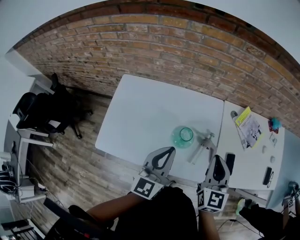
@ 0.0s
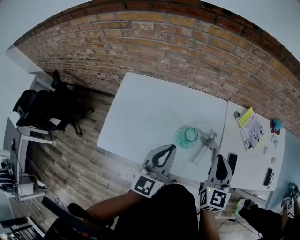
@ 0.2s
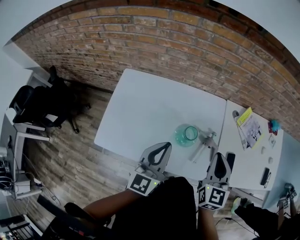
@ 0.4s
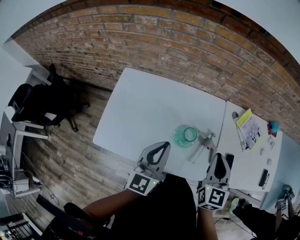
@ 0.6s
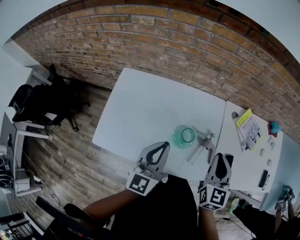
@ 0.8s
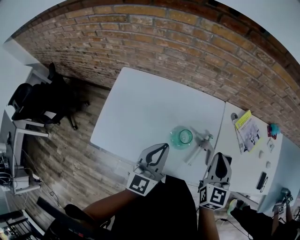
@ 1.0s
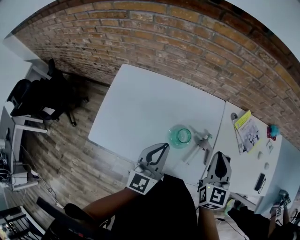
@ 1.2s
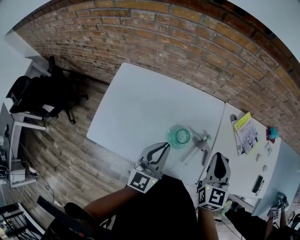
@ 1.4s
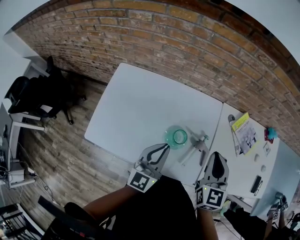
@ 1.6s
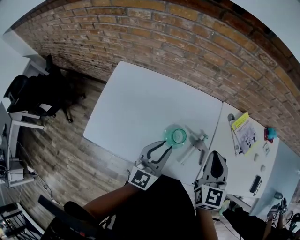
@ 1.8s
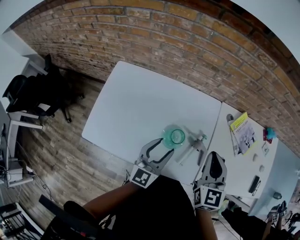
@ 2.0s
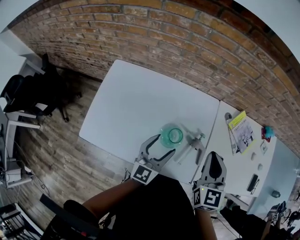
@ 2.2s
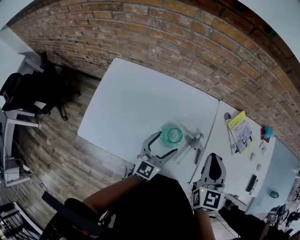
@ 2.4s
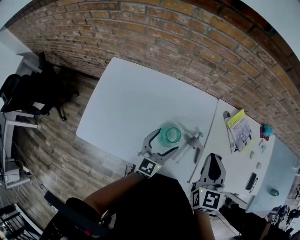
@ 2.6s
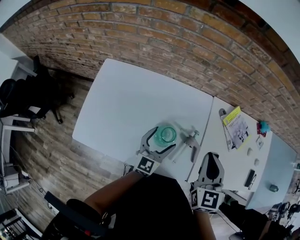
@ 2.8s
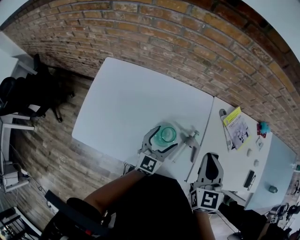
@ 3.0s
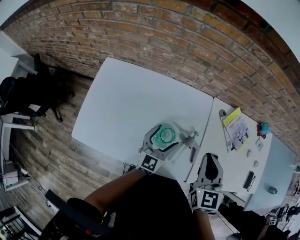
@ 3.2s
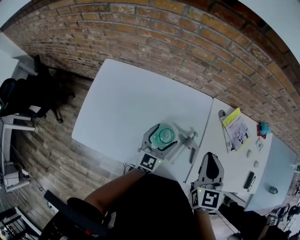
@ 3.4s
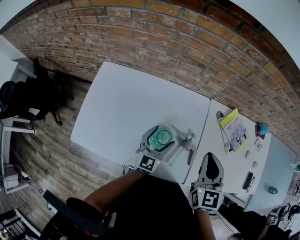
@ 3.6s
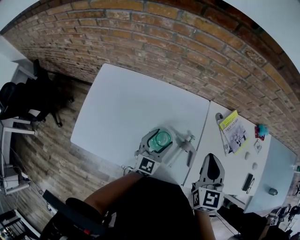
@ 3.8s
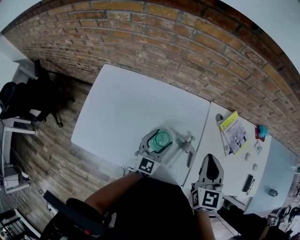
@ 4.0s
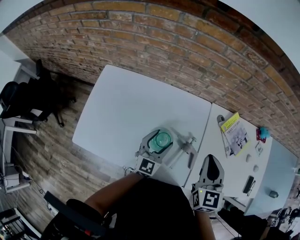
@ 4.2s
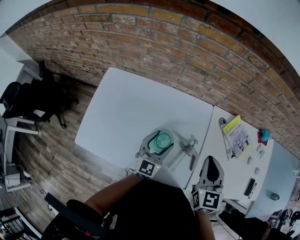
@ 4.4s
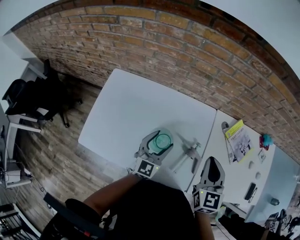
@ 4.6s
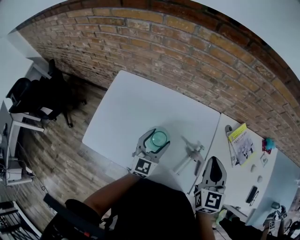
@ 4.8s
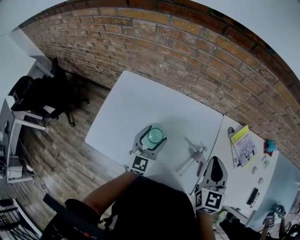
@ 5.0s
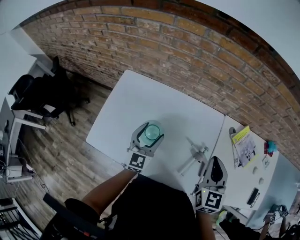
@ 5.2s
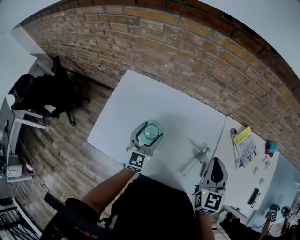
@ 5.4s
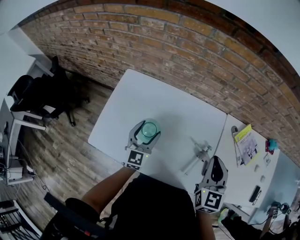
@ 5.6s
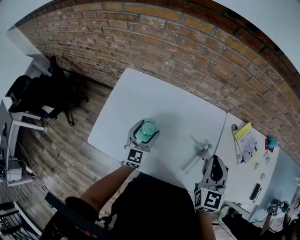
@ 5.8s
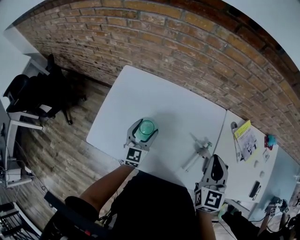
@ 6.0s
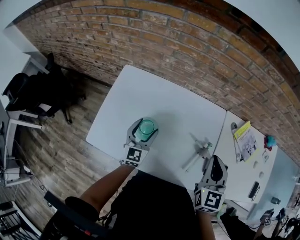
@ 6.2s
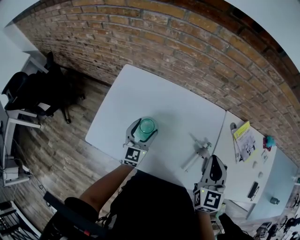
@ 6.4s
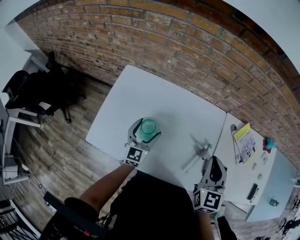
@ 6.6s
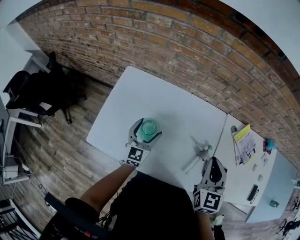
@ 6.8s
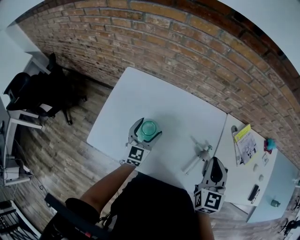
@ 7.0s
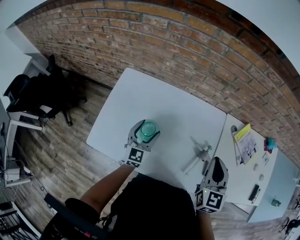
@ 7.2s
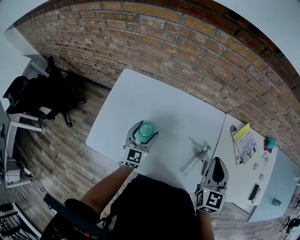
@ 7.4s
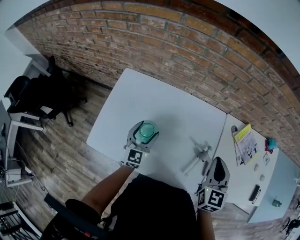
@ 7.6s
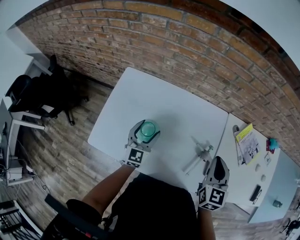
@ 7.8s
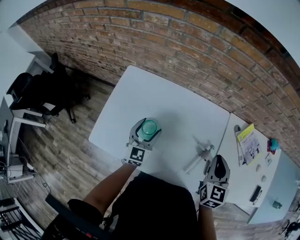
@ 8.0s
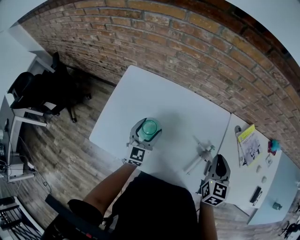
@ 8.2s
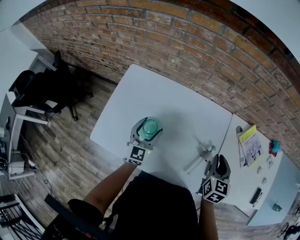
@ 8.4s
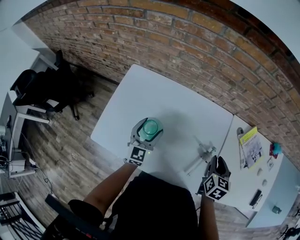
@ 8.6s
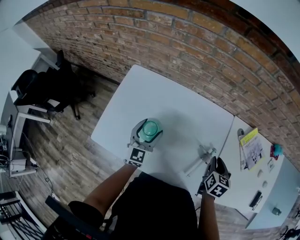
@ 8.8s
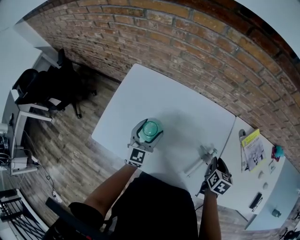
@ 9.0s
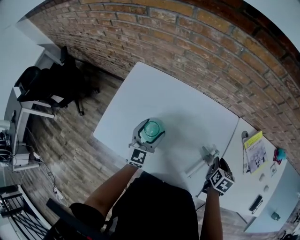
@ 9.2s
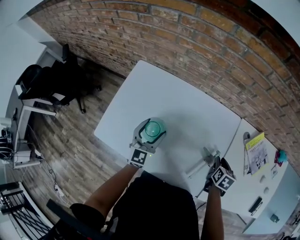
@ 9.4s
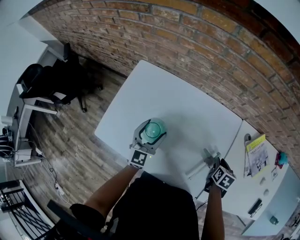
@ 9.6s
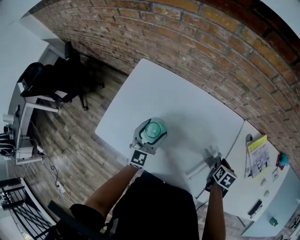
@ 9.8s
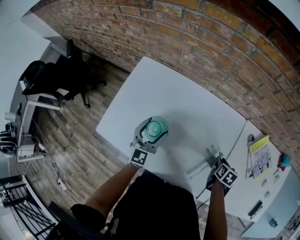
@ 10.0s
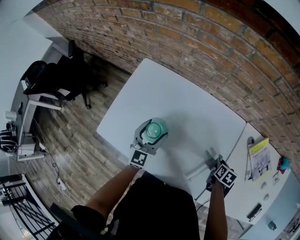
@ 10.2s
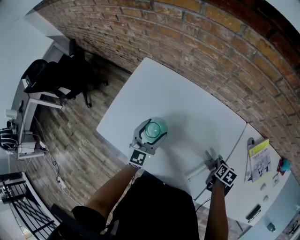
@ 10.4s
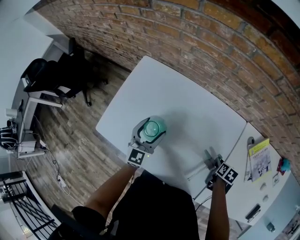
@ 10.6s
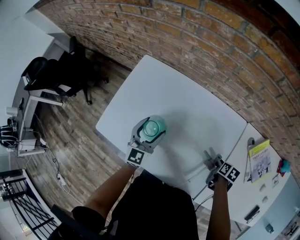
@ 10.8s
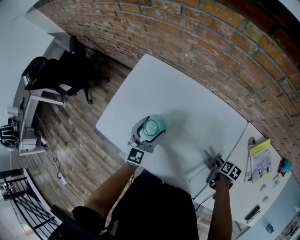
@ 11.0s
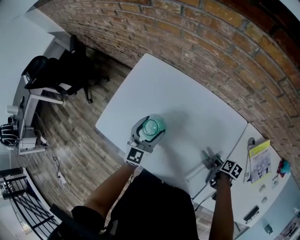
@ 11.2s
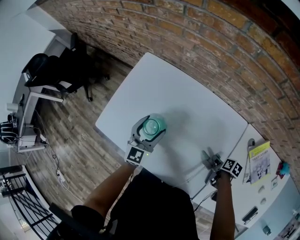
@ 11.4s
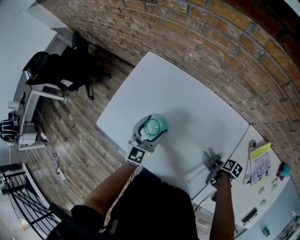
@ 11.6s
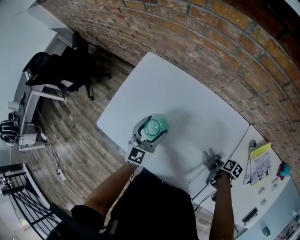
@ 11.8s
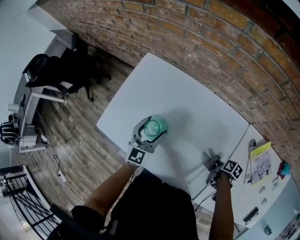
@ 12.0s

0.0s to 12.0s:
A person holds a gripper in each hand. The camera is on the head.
0.0s to 1.6s: The left gripper moves downward, some 5 cm. The right gripper travels forward by roughly 5 cm.
1.6s to 3.0s: The left gripper travels downward, forward and to the right by roughly 15 cm, and opens its fingers.
3.0s to 4.4s: There are only small adjustments of the grippers.
4.4s to 6.0s: The left gripper is displaced to the left by some 20 cm; the right gripper travels to the left by some 10 cm.
6.0s to 7.6s: There are only small adjustments of the grippers.
7.6s to 9.0s: The right gripper is displaced downward by approximately 15 cm, and rotates about 30 degrees.
9.0s to 10.4s: The right gripper moves downward, roughly 10 cm.
10.4s to 12.0s: The right gripper turns by approximately 30 degrees.

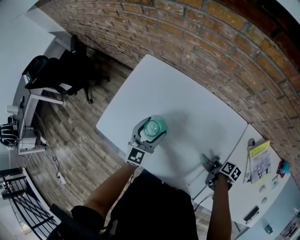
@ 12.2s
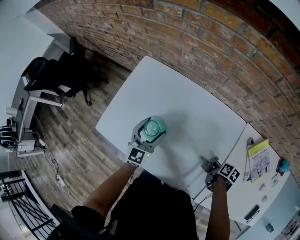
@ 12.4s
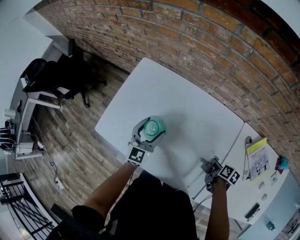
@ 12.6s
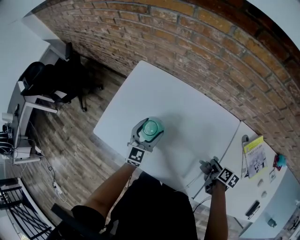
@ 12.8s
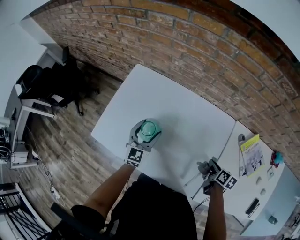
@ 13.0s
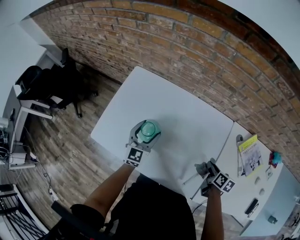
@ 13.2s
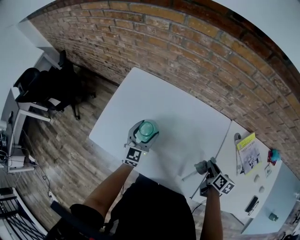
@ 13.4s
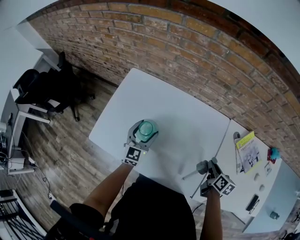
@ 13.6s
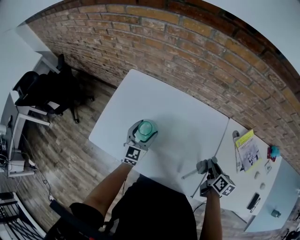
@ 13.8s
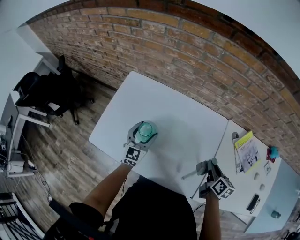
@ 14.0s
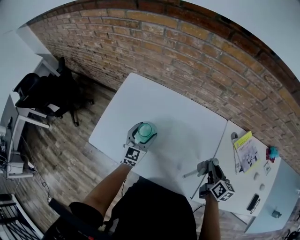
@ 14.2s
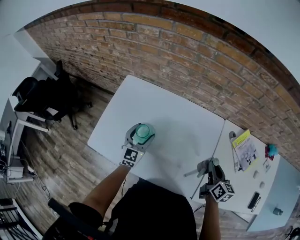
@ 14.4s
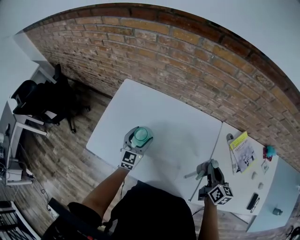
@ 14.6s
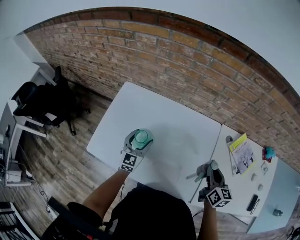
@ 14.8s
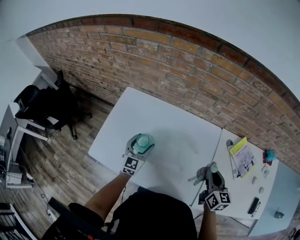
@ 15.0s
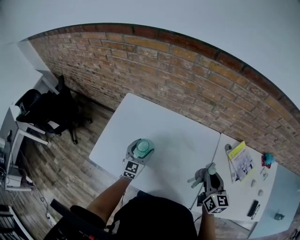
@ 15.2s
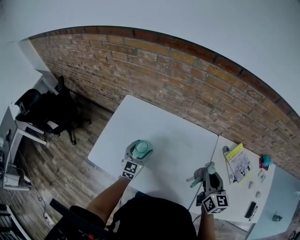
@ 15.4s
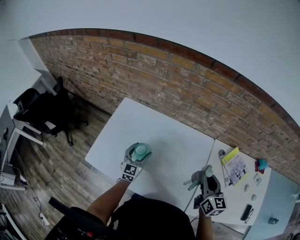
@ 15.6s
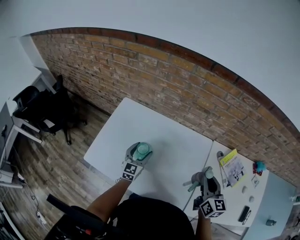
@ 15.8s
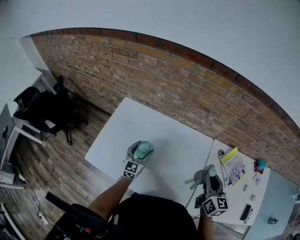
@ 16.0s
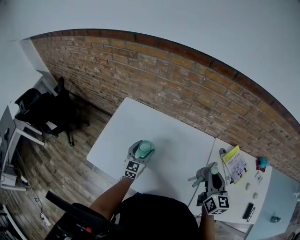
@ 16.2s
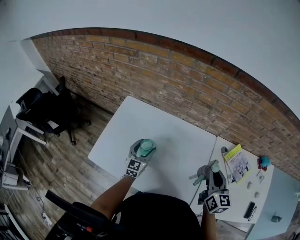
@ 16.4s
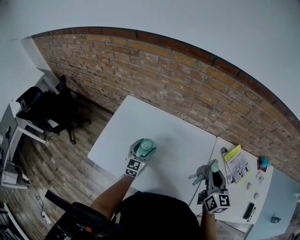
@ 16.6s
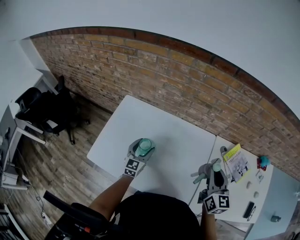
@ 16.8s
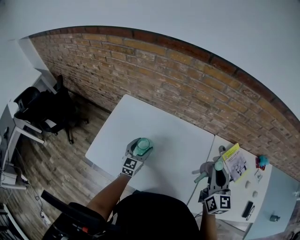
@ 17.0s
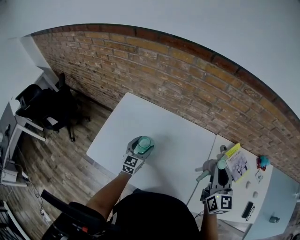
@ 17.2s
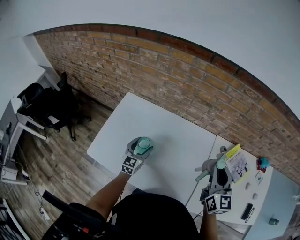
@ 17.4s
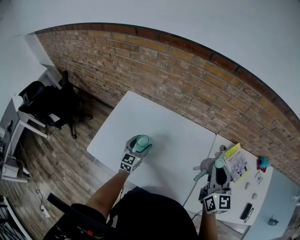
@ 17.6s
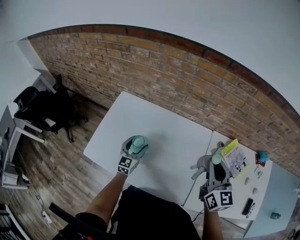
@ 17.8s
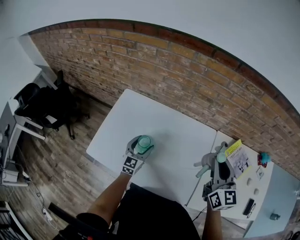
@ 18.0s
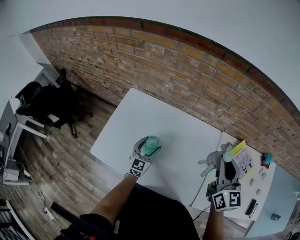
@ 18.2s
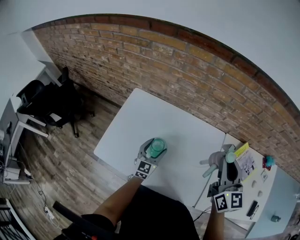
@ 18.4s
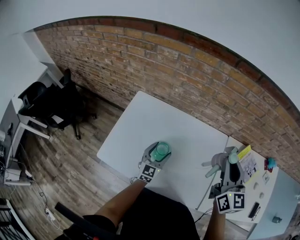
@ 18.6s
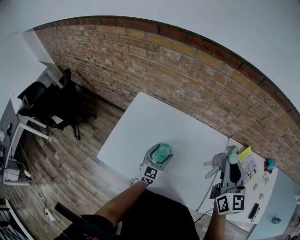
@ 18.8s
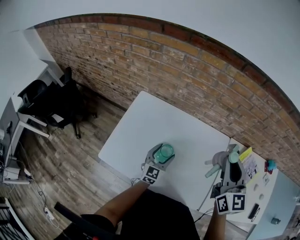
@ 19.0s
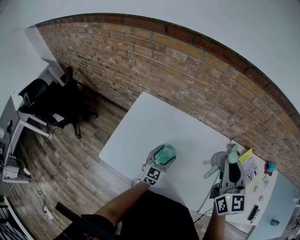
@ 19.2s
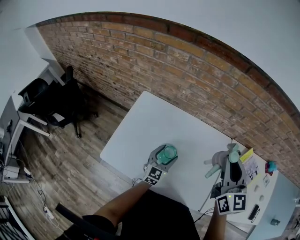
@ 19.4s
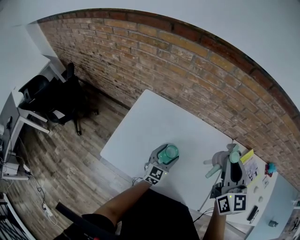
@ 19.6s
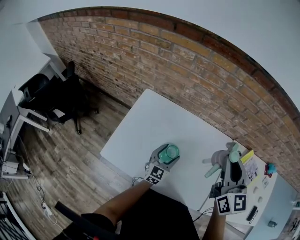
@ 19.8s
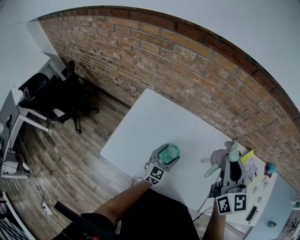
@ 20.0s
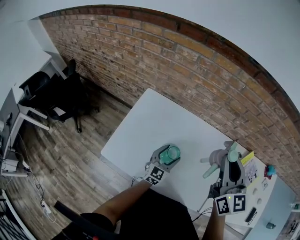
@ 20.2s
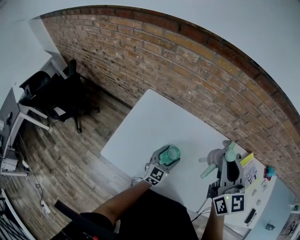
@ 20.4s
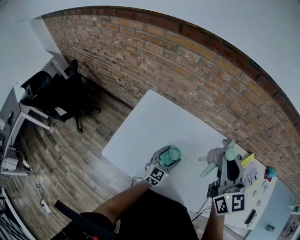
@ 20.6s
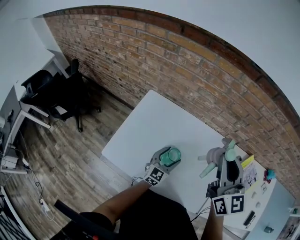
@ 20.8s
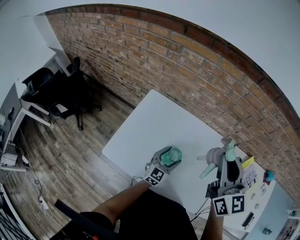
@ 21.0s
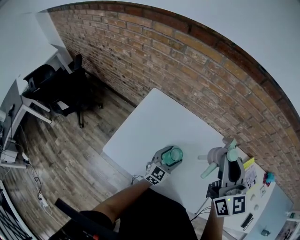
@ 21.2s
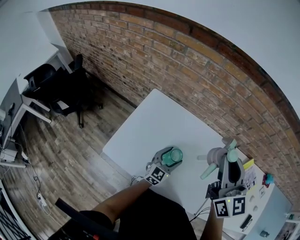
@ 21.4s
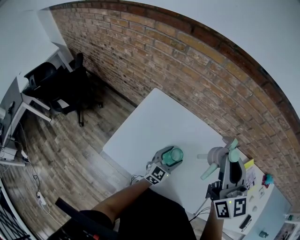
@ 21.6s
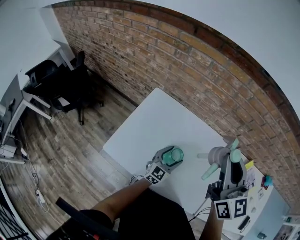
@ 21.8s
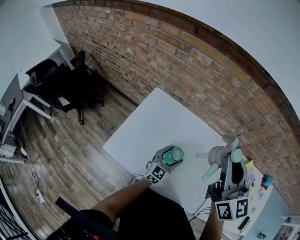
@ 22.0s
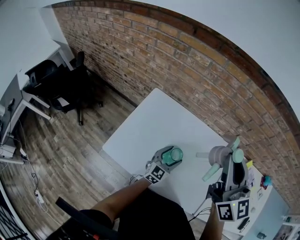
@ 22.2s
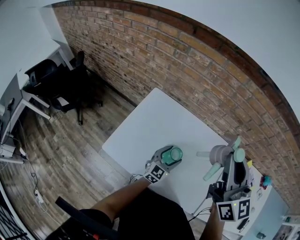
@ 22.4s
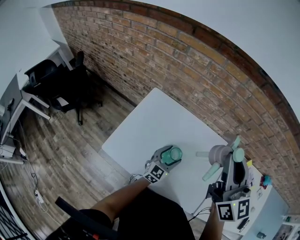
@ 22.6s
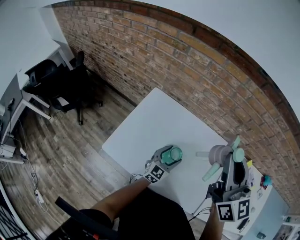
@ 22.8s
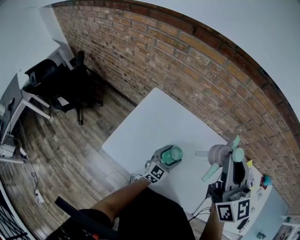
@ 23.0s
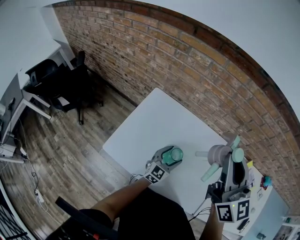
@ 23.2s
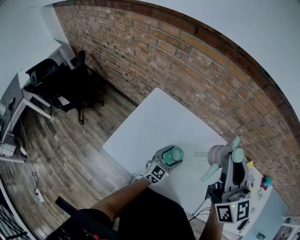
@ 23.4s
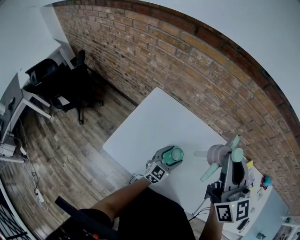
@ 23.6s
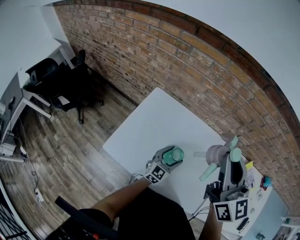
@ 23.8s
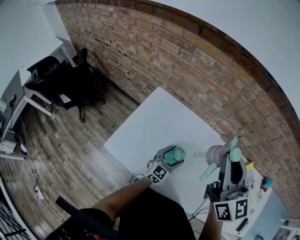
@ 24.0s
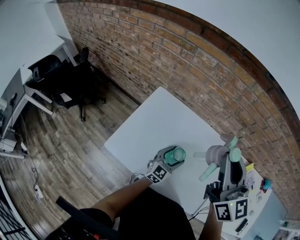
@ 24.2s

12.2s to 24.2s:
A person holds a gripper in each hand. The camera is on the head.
12.2s to 13.8s: The right gripper travels upward by about 15 cm, and swivels roughly 30 degrees.
13.8s to 15.2s: The right gripper is displaced upward by approximately 10 cm, and rotates roughly 30 degrees.
15.2s to 16.6s: The right gripper is displaced upward by roughly 5 cm.
16.6s to 18.2s: The right gripper heads upward, covering some 10 cm.
18.2s to 19.8s: The right gripper shifts some 10 cm to the left.
19.8s to 21.2s: The right gripper is displaced to the left by approximately 5 cm.
21.2s to 24.2s: The grippers move only a little.
